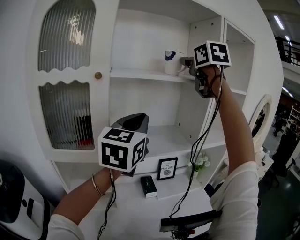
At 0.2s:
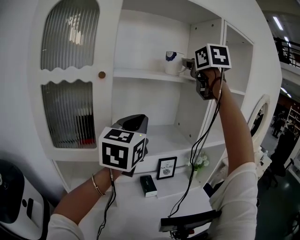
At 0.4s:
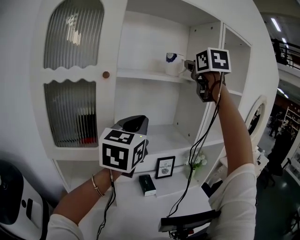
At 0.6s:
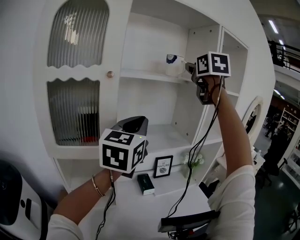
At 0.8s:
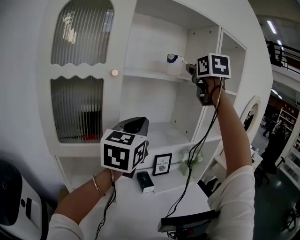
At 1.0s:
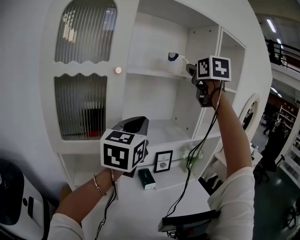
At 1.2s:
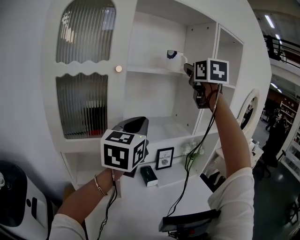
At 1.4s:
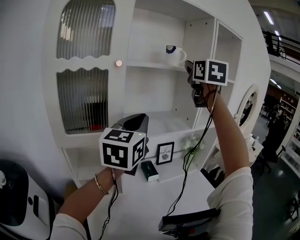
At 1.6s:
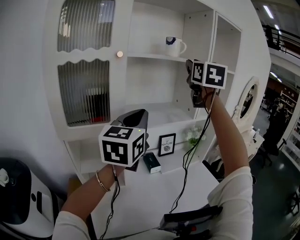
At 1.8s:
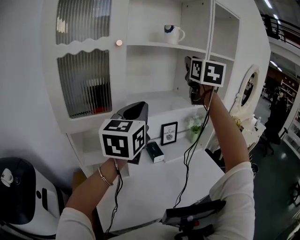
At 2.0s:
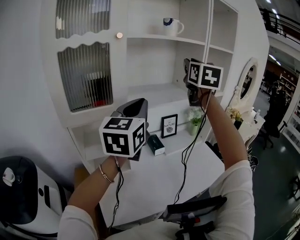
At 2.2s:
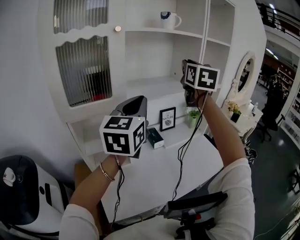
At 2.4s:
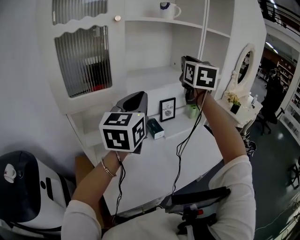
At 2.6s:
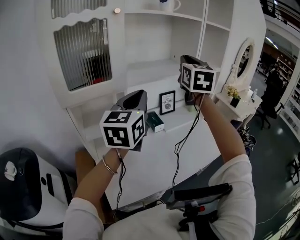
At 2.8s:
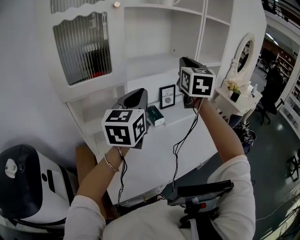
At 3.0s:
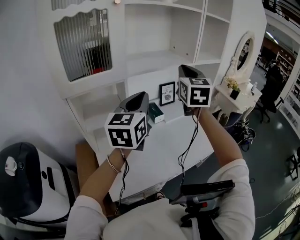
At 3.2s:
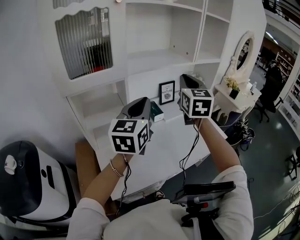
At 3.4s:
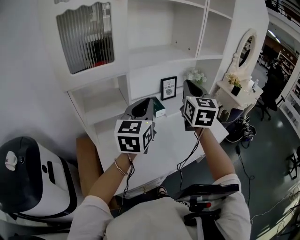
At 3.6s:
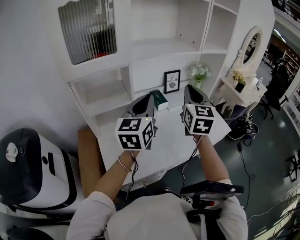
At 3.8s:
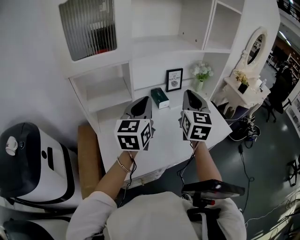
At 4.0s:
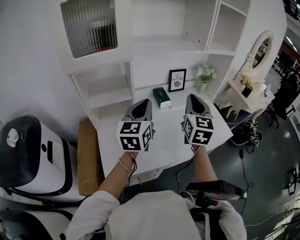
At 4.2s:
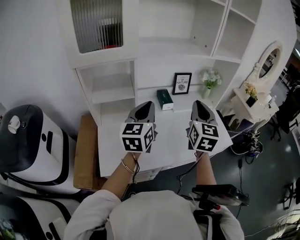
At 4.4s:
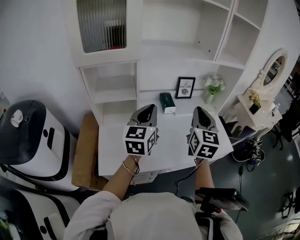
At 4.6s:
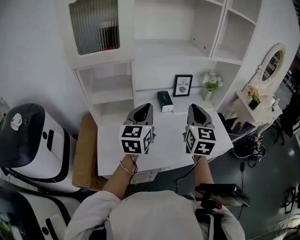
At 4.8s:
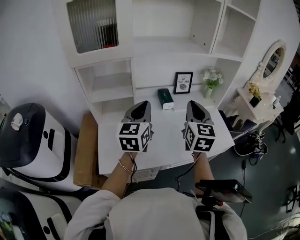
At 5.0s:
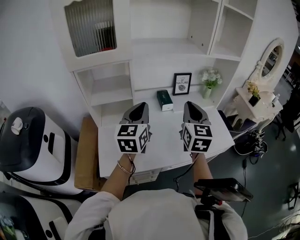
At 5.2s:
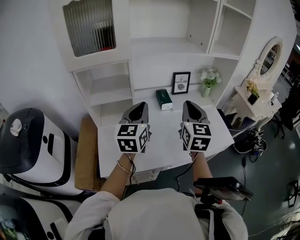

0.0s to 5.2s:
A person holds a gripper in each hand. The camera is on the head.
0.0s to 1.8s: The grippers both shift backward and downward by approximately 15 cm.
1.8s to 3.4s: The right gripper heads downward and backward, covering about 30 cm, and closes its fingers. The left gripper heads downward and backward, covering roughly 20 cm.
3.4s to 5.2s: Both grippers move downward, approximately 10 cm.

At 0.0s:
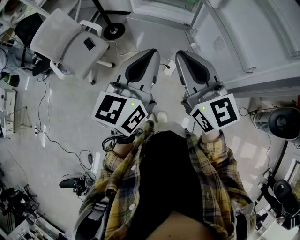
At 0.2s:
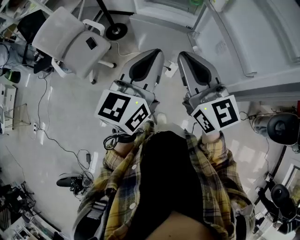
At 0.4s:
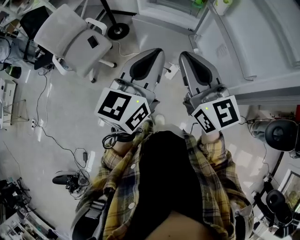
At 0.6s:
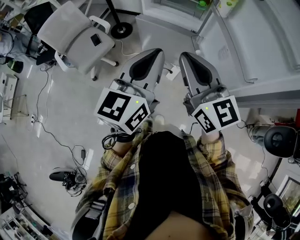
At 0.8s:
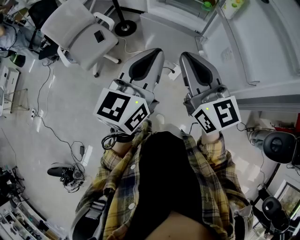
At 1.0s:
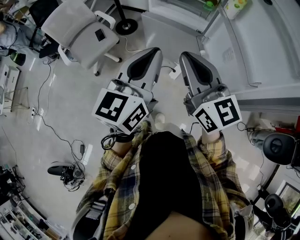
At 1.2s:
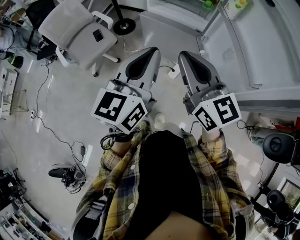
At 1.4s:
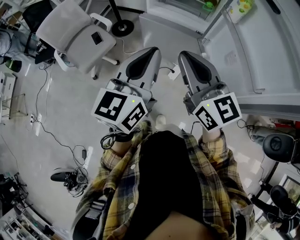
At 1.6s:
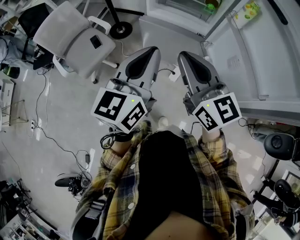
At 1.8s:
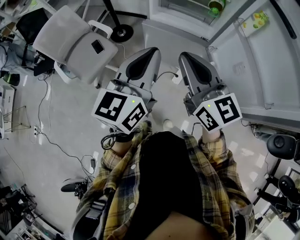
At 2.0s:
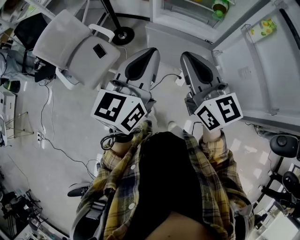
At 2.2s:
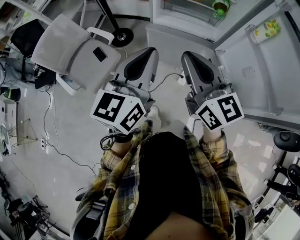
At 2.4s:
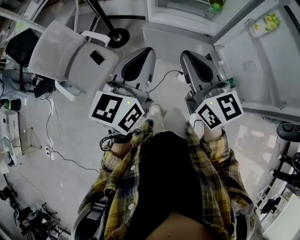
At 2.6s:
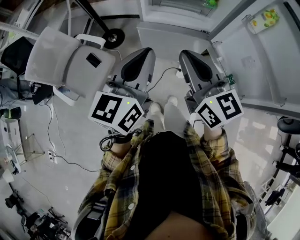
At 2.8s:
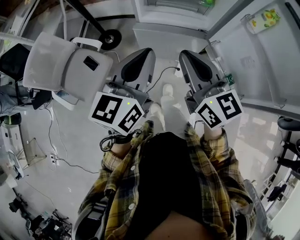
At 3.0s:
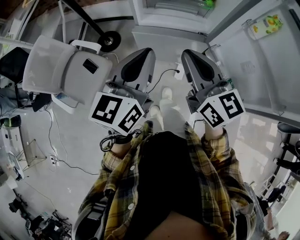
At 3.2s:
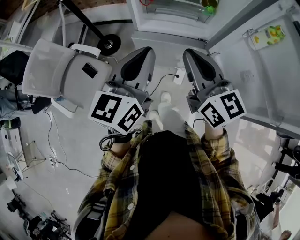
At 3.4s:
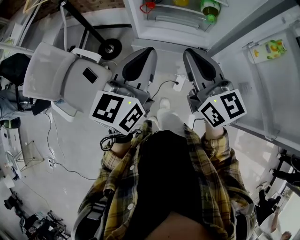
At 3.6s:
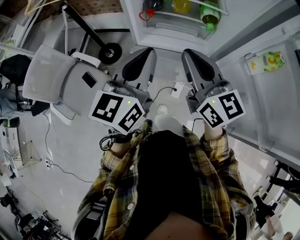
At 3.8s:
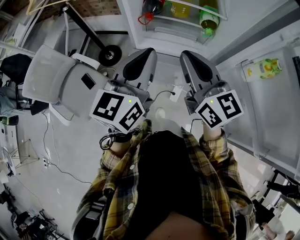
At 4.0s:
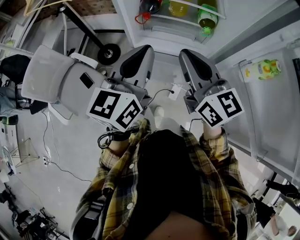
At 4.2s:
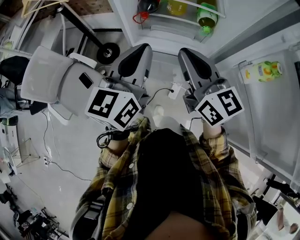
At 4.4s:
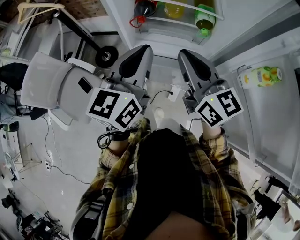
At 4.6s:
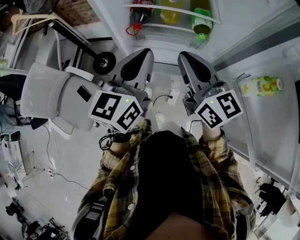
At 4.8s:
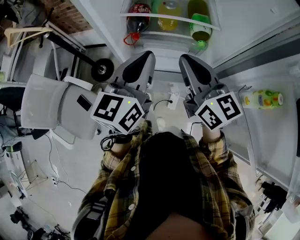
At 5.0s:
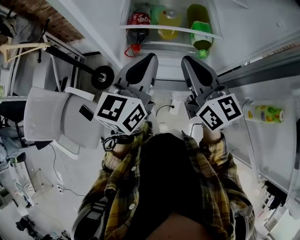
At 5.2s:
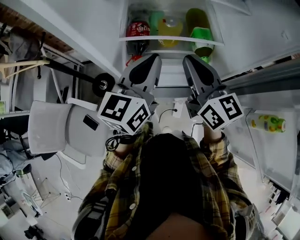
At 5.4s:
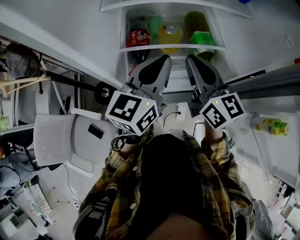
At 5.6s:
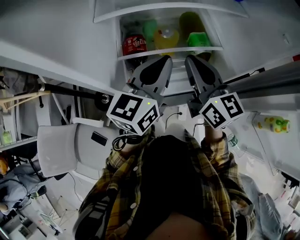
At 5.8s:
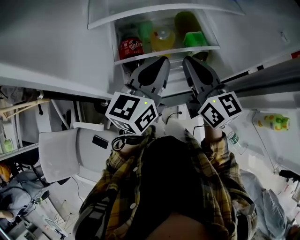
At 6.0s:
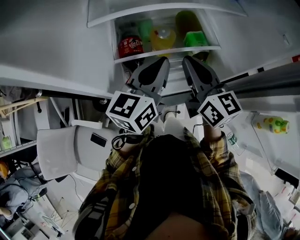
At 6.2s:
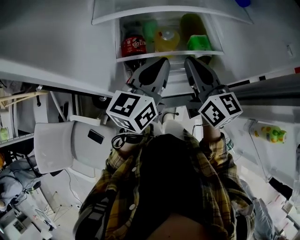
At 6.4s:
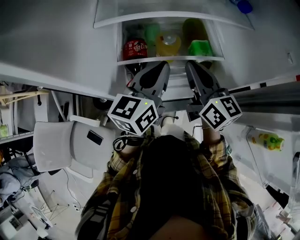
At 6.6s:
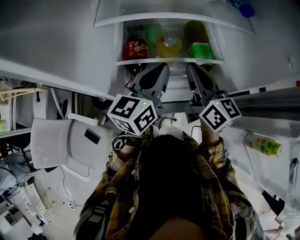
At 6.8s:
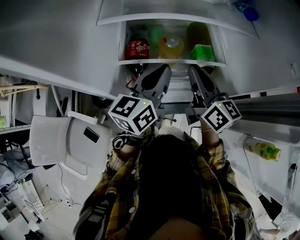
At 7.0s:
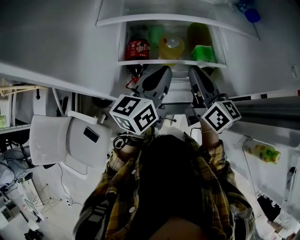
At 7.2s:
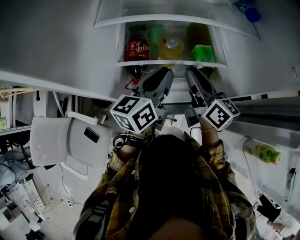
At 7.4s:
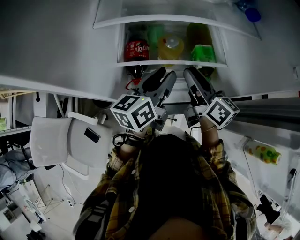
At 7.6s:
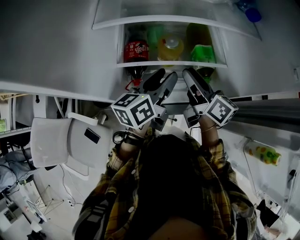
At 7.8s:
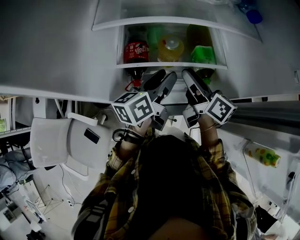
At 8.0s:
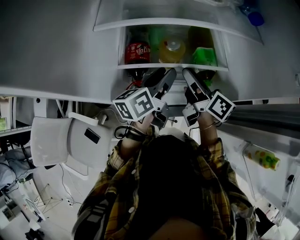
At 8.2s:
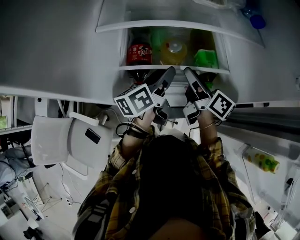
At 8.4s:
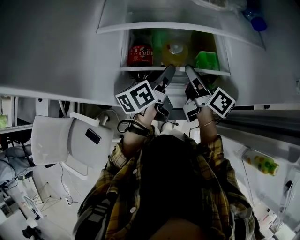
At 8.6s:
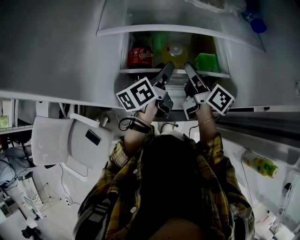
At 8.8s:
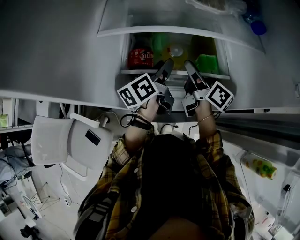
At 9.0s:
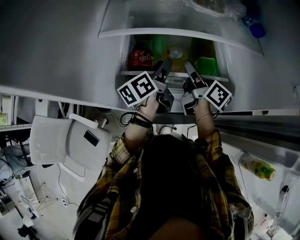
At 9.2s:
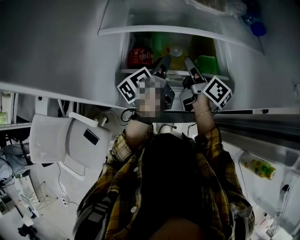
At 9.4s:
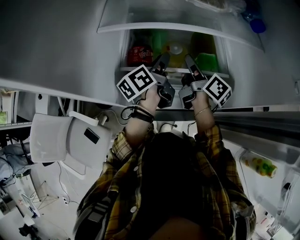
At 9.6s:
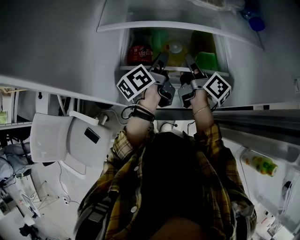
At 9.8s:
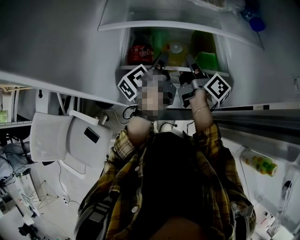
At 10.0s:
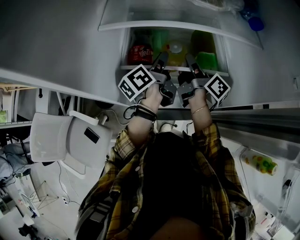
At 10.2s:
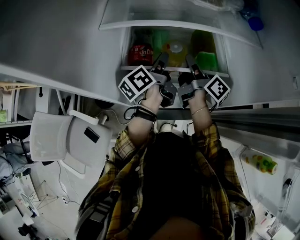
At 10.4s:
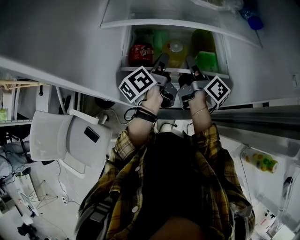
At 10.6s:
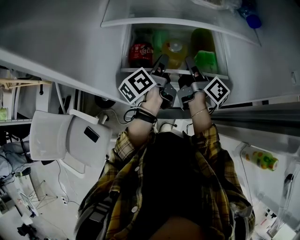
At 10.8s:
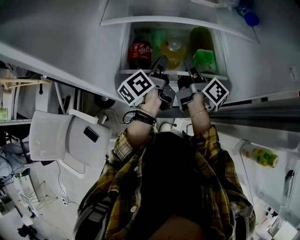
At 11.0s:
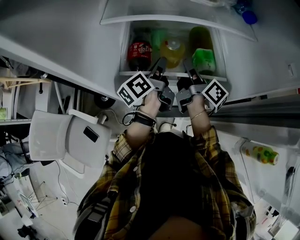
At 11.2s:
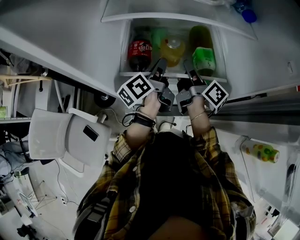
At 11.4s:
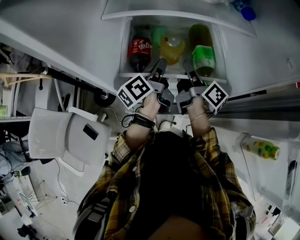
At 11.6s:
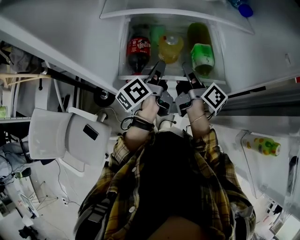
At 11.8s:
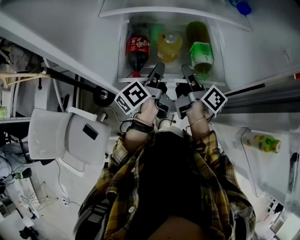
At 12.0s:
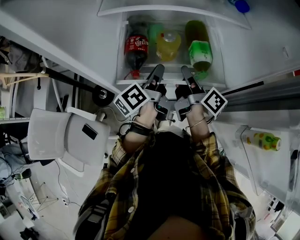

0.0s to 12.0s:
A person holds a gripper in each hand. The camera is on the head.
0.0s to 1.6s: The left gripper shifts roughly 10 cm to the left and forward; the right gripper shifts roughly 10 cm forward and to the left.
1.6s to 3.0s: The two grippers go approximately 15 cm forward and to the left.
3.0s to 4.4s: The grippers both shift forward and to the right by approximately 20 cm.
4.4s to 6.0s: The right gripper moves about 20 cm, and swivels about 20 degrees; the left gripper ends up roughly 25 cm from where it was, and swivels approximately 30 degrees.
6.0s to 7.6s: Both grippers move downward, roughly 5 cm. The left gripper rotates approximately 20 degrees, and opens its fingers. Meanwhile the right gripper changes its angle by roughly 30 degrees, and opens.
7.6s to 9.0s: The two grippers go about 10 cm forward. The left gripper swivels roughly 20 degrees.
9.0s to 10.4s: The right gripper closes. Meanwhile the left gripper closes its fingers.
10.4s to 12.0s: Both grippers move backward, approximately 10 cm.

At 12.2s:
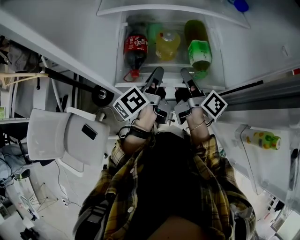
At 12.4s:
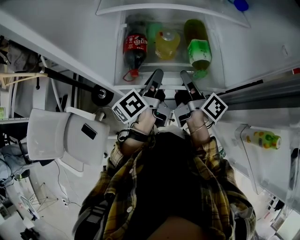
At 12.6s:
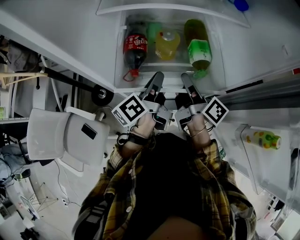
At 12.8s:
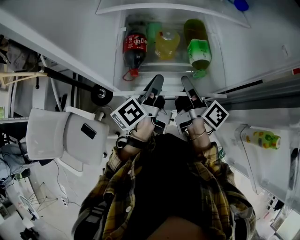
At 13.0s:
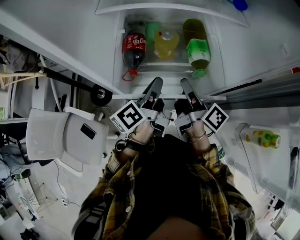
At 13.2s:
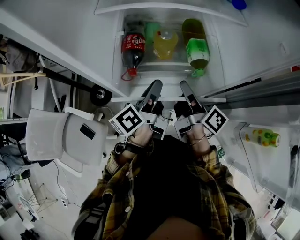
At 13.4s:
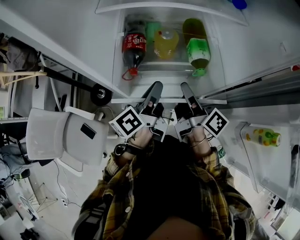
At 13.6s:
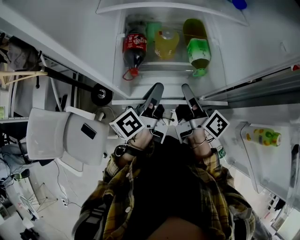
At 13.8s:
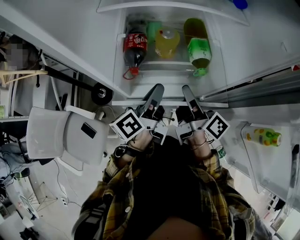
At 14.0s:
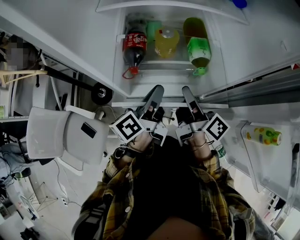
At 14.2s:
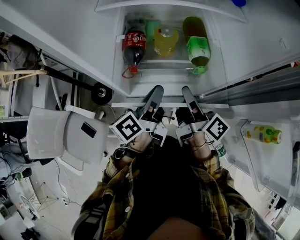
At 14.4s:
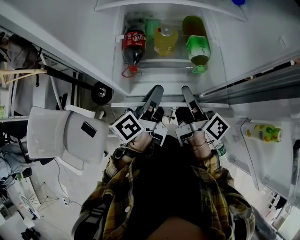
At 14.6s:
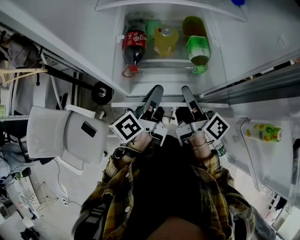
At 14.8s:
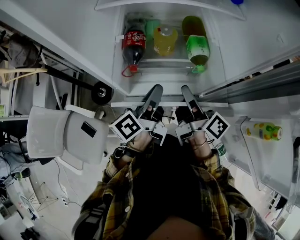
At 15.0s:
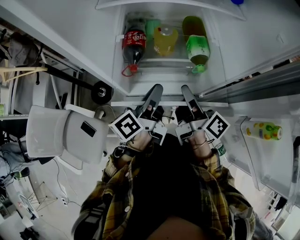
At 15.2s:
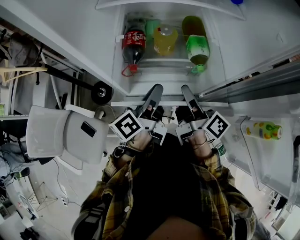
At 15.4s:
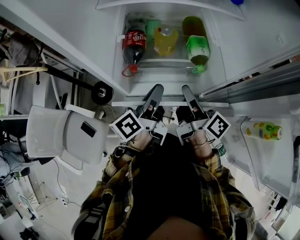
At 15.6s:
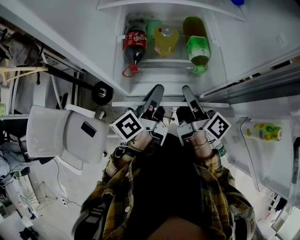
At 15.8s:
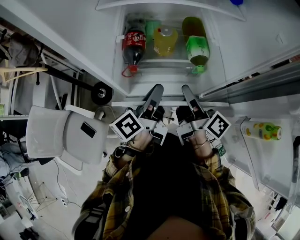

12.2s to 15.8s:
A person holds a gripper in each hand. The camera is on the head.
12.2s to 14.0s: The grippers both shift backward by about 10 cm.
14.0s to 15.8s: Both grippers stay put.

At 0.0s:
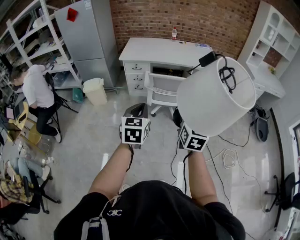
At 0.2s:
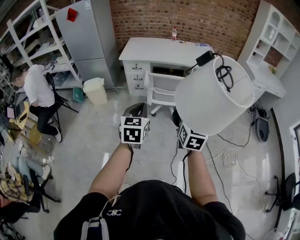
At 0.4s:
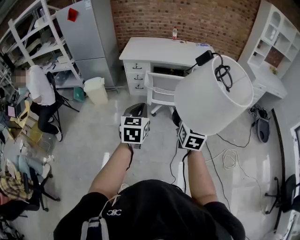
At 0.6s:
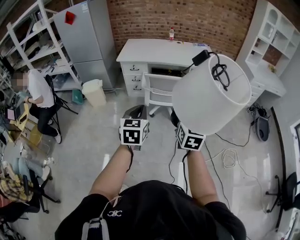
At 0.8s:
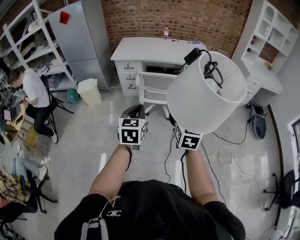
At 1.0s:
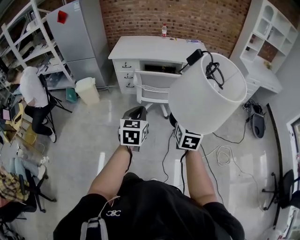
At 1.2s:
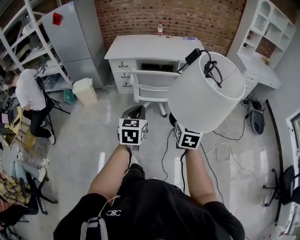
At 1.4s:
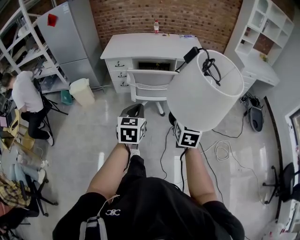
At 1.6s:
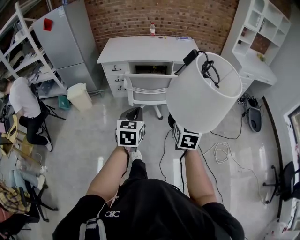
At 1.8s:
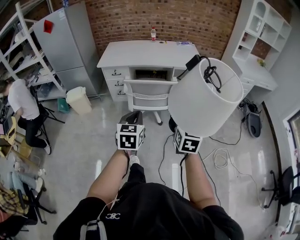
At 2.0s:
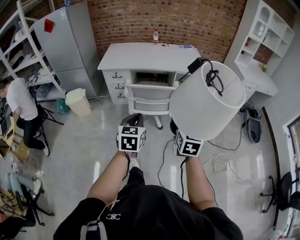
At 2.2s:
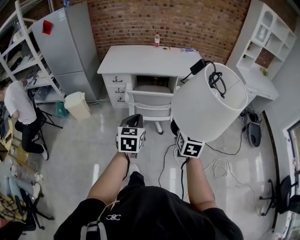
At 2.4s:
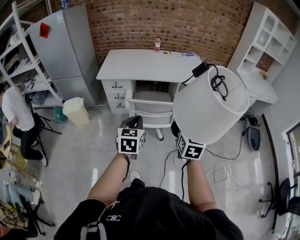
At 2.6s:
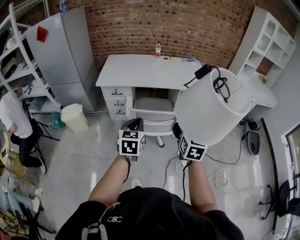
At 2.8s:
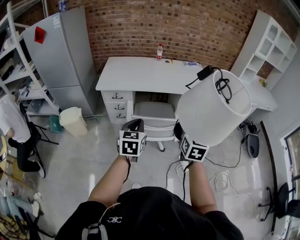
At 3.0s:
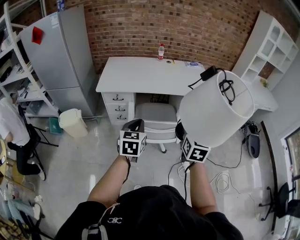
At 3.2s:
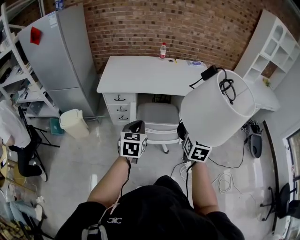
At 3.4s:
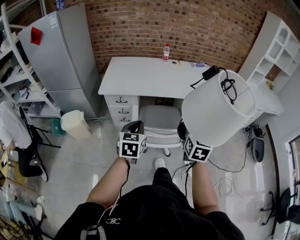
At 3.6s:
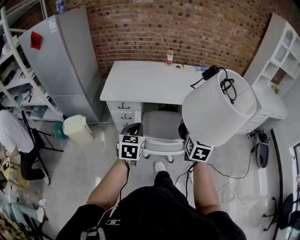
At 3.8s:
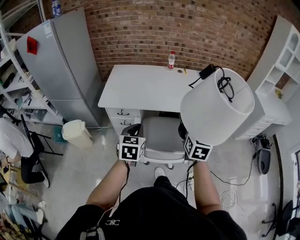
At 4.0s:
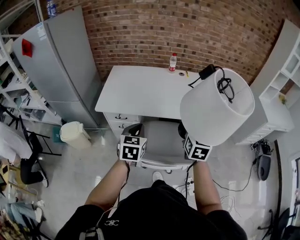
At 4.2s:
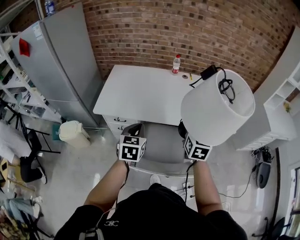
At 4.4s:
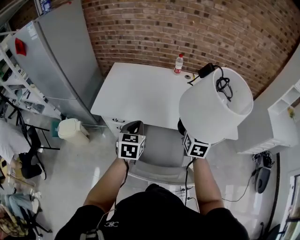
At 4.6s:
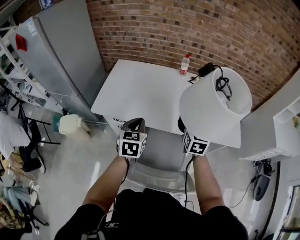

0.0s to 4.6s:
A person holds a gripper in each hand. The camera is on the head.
0.0s to 1.6s: Both grippers travel together to the right, about 15 cm.
1.6s to 3.0s: Both grippers travel together forward and to the left, roughly 35 cm.
3.0s to 4.6s: The two grippers travel together, forward, approximately 40 cm.
